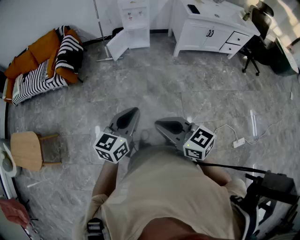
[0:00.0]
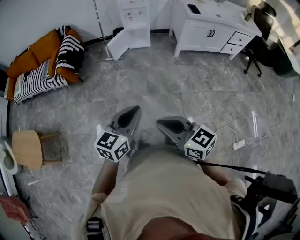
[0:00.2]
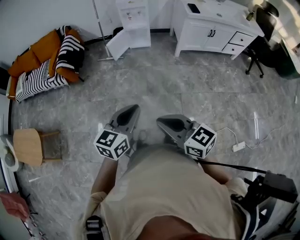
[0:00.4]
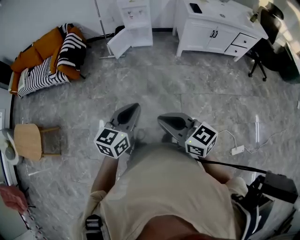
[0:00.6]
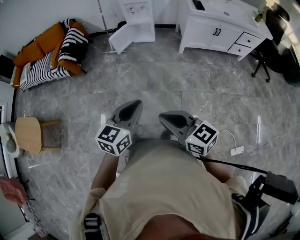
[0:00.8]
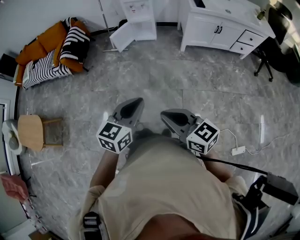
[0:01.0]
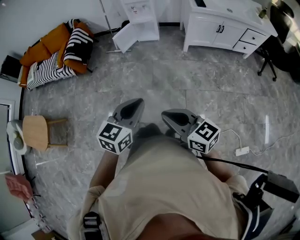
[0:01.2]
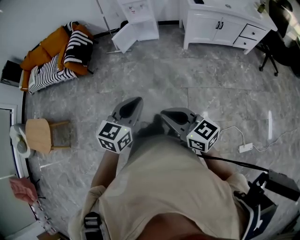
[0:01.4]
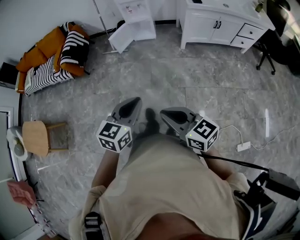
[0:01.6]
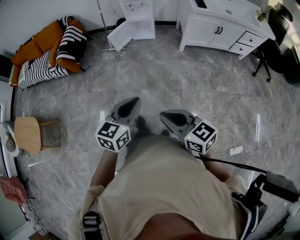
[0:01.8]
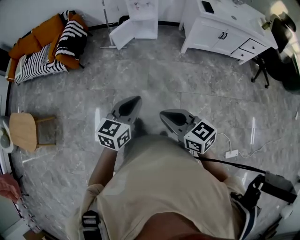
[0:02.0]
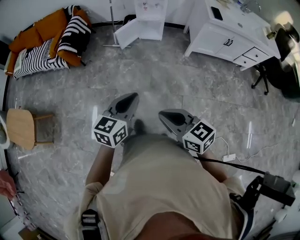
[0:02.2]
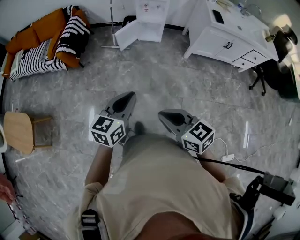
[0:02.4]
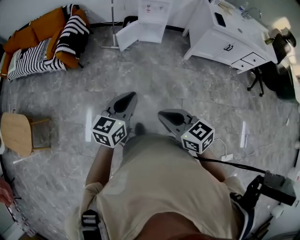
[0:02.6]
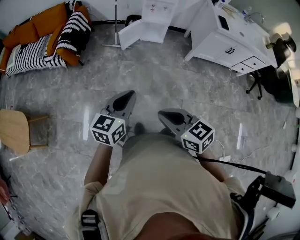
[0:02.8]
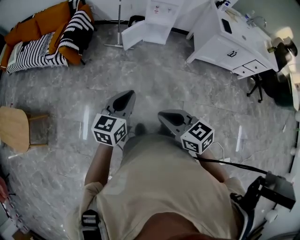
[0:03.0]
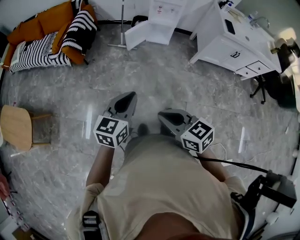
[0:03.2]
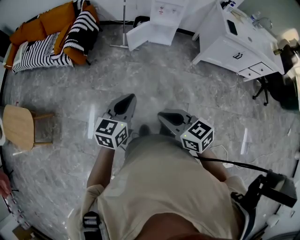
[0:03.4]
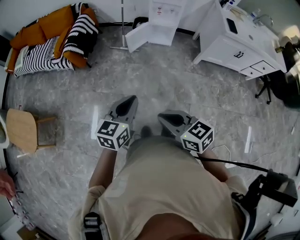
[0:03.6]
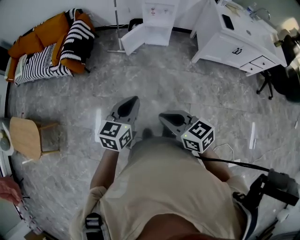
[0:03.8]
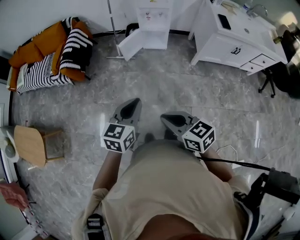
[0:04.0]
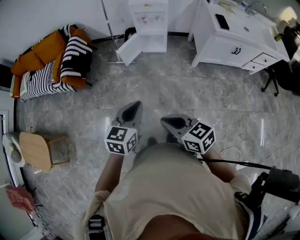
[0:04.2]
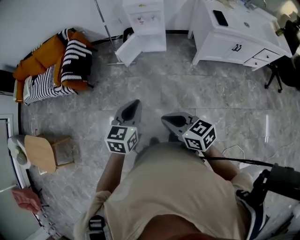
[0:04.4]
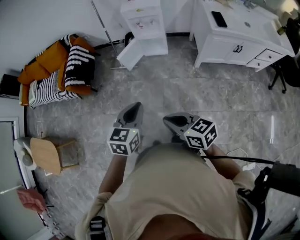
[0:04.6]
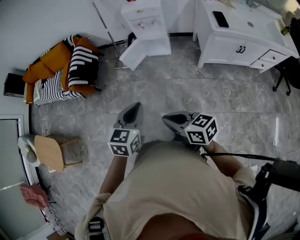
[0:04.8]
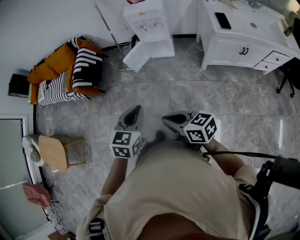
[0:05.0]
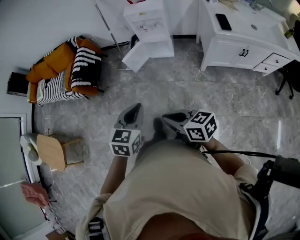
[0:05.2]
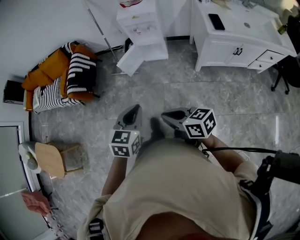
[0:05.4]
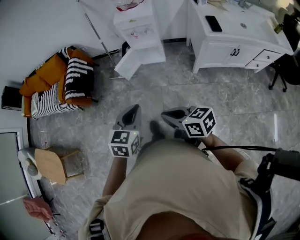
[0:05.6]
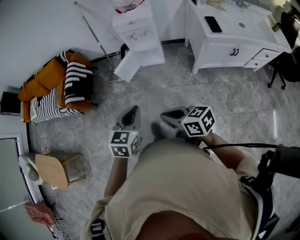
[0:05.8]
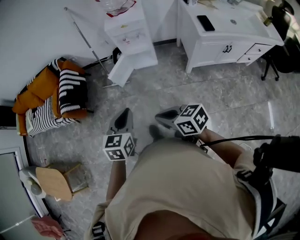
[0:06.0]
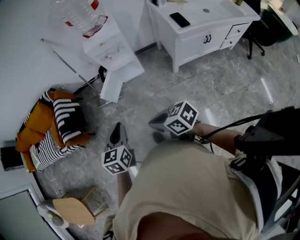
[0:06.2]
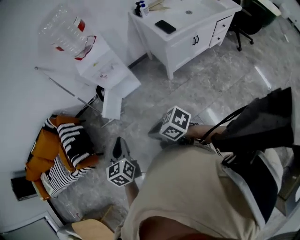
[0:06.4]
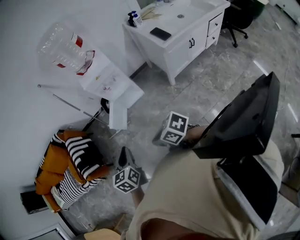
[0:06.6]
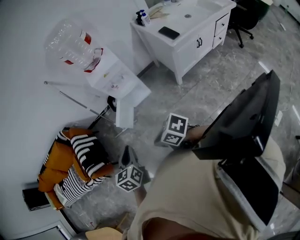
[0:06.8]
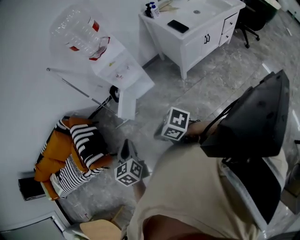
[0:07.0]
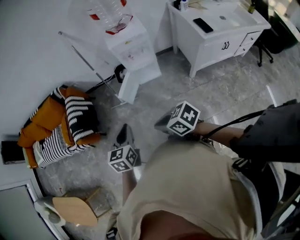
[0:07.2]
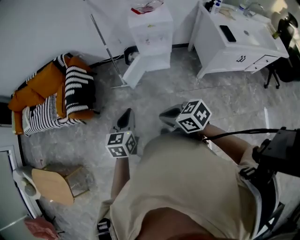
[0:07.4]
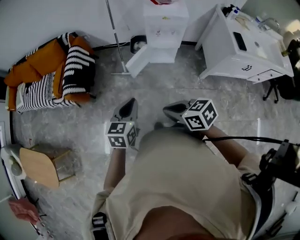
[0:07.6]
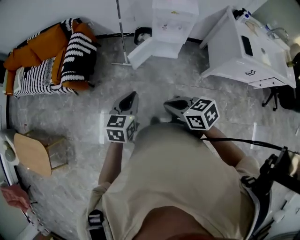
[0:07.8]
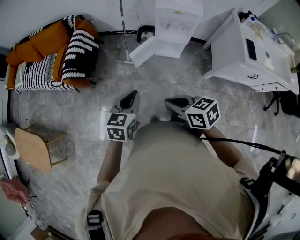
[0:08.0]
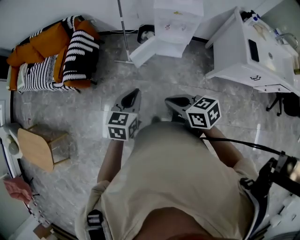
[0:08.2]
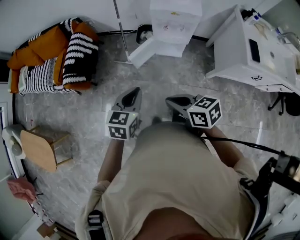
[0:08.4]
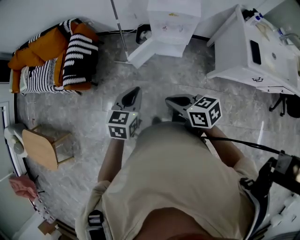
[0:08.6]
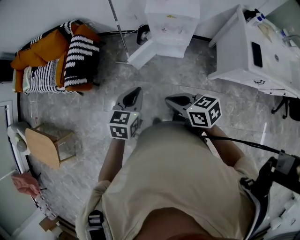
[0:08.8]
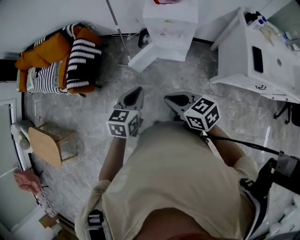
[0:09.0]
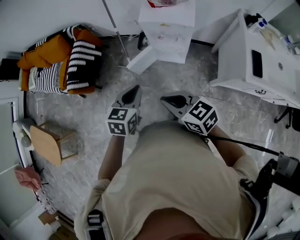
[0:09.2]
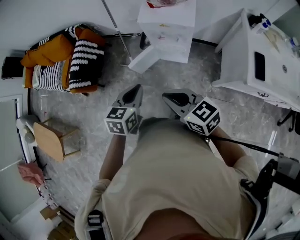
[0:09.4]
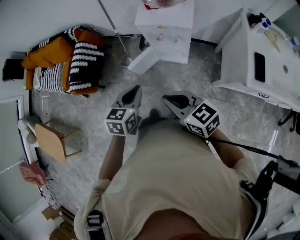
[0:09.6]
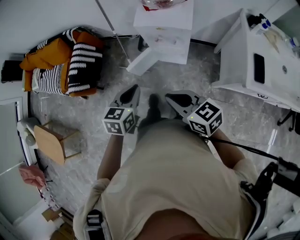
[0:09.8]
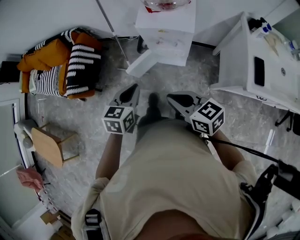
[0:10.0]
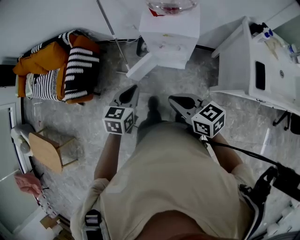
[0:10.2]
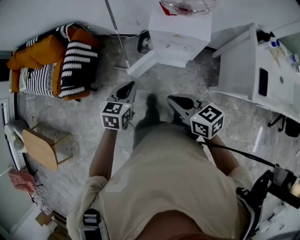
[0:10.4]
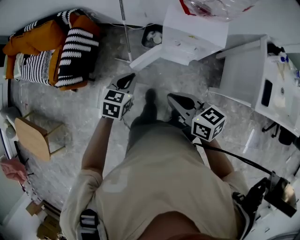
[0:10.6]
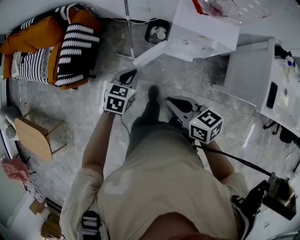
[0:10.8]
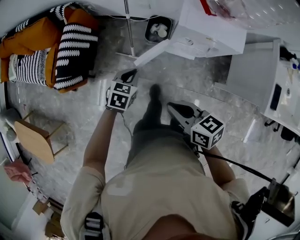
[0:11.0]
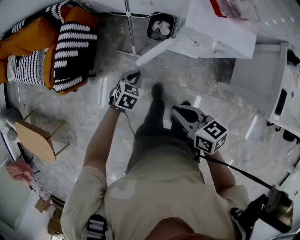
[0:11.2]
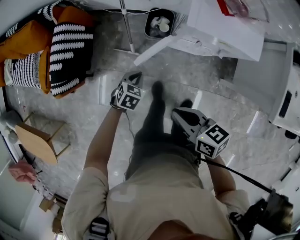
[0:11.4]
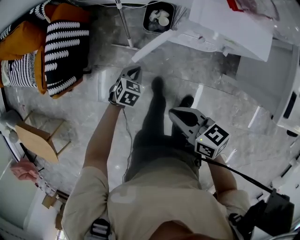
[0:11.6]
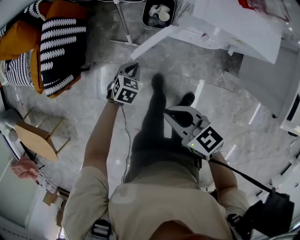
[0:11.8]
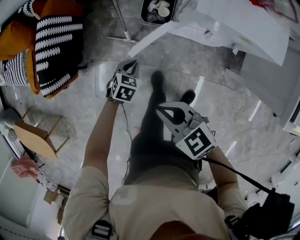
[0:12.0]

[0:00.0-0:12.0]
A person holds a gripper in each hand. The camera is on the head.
0:00.0 to 0:01.6: The grippers both shift to the right by approximately 15 cm.
0:01.6 to 0:03.0: The two grippers go approximately 25 cm to the left and forward.
0:03.0 to 0:04.4: Both grippers travel together to the right and forward, about 20 cm.
0:04.4 to 0:06.0: The grippers both shift forward by some 15 cm.
0:06.0 to 0:07.6: Both grippers move to the left and forward, roughly 15 cm.
0:07.6 to 0:09.0: The two grippers go about 20 cm to the right and forward.
0:09.0 to 0:10.4: The grippers both shift forward by roughly 15 cm.
0:10.4 to 0:12.0: The left gripper shifts approximately 35 cm downward, and swivels about 30 degrees. The right gripper is displaced downward, to the left and forward by approximately 25 cm, and changes its angle by approximately 20 degrees.

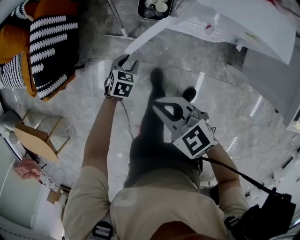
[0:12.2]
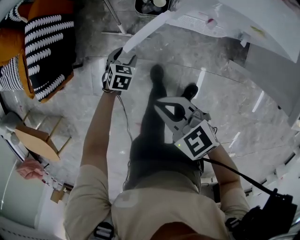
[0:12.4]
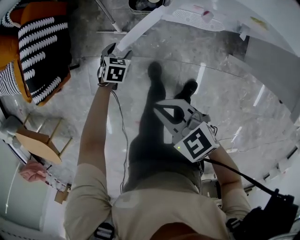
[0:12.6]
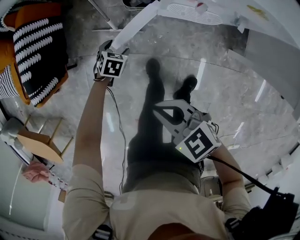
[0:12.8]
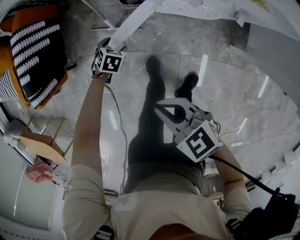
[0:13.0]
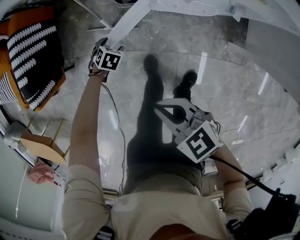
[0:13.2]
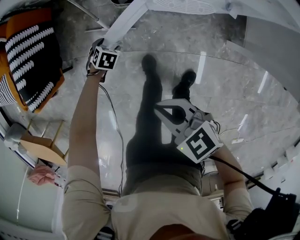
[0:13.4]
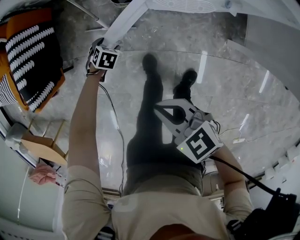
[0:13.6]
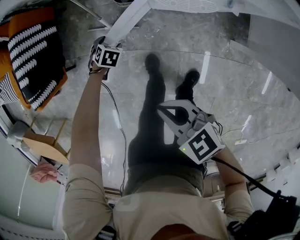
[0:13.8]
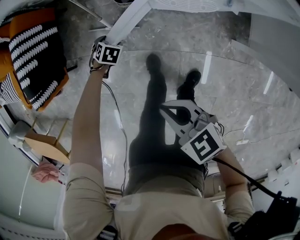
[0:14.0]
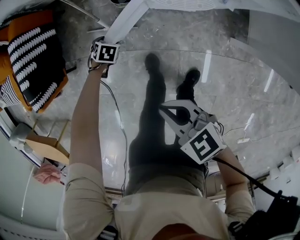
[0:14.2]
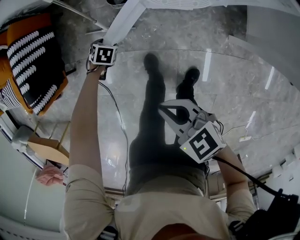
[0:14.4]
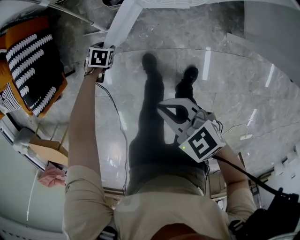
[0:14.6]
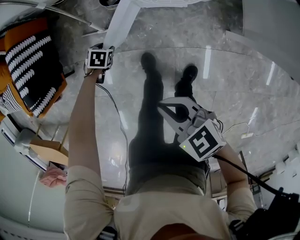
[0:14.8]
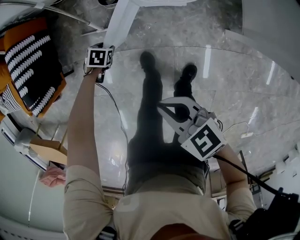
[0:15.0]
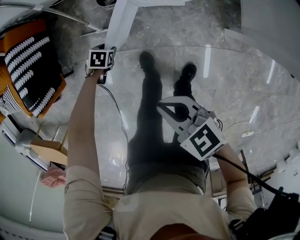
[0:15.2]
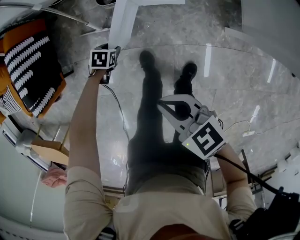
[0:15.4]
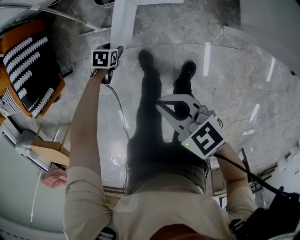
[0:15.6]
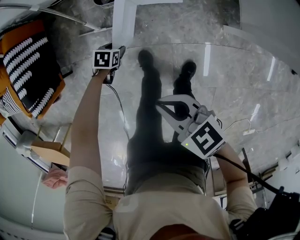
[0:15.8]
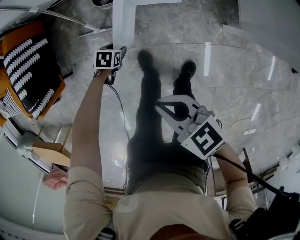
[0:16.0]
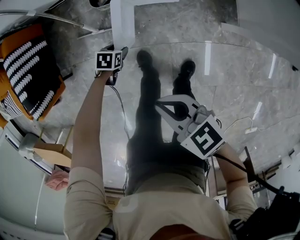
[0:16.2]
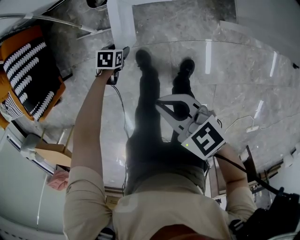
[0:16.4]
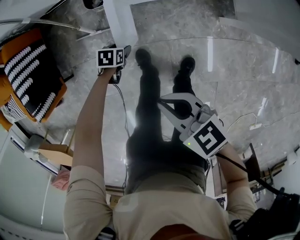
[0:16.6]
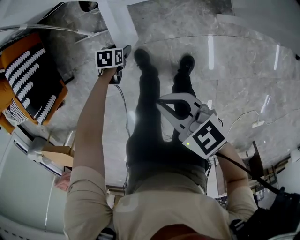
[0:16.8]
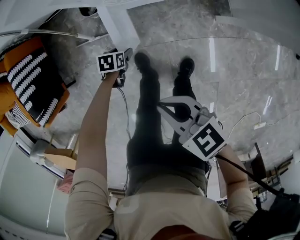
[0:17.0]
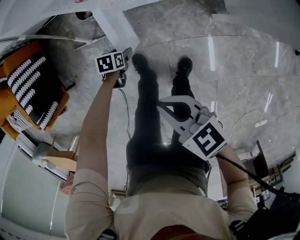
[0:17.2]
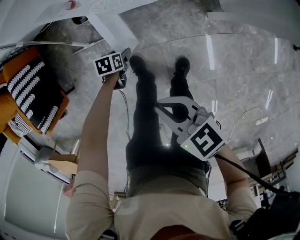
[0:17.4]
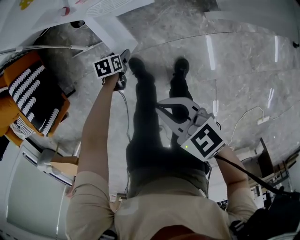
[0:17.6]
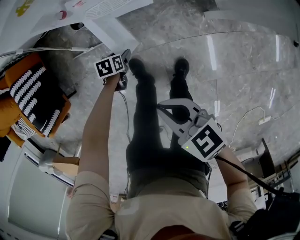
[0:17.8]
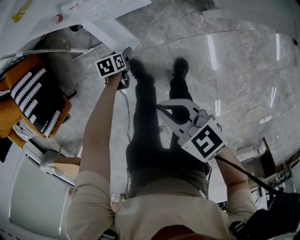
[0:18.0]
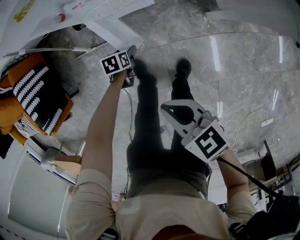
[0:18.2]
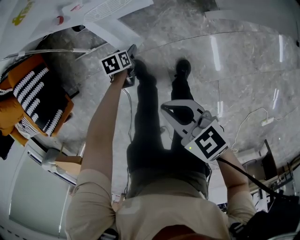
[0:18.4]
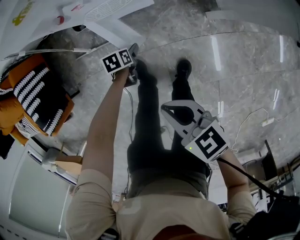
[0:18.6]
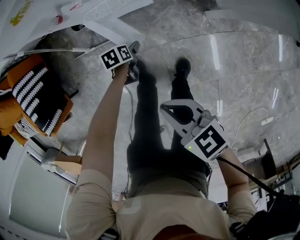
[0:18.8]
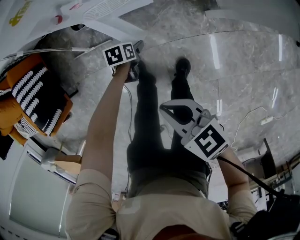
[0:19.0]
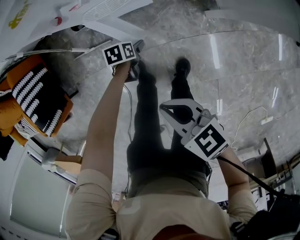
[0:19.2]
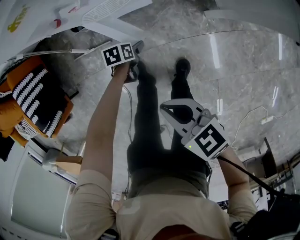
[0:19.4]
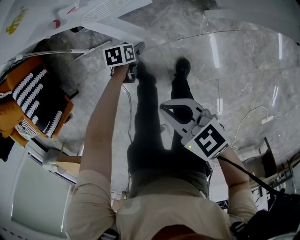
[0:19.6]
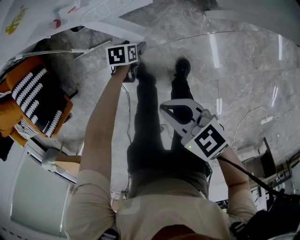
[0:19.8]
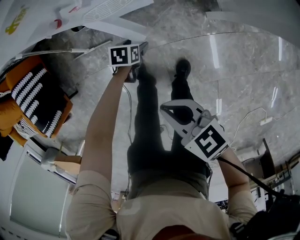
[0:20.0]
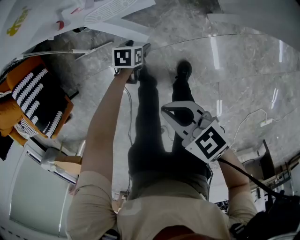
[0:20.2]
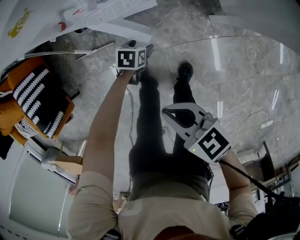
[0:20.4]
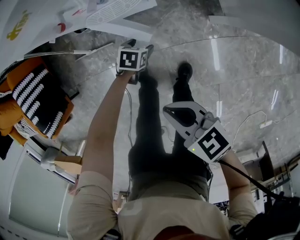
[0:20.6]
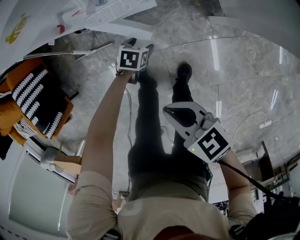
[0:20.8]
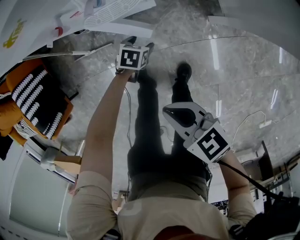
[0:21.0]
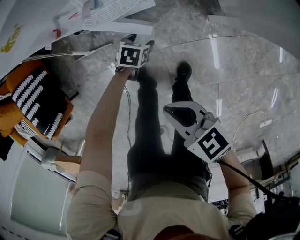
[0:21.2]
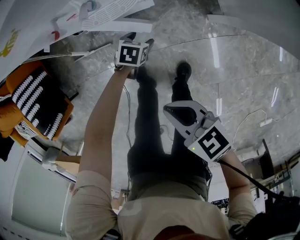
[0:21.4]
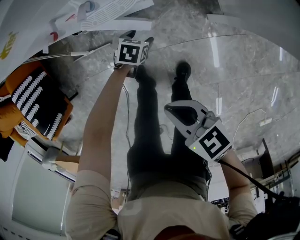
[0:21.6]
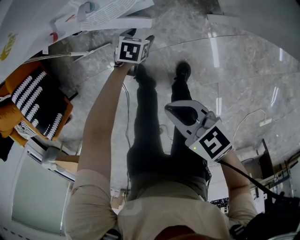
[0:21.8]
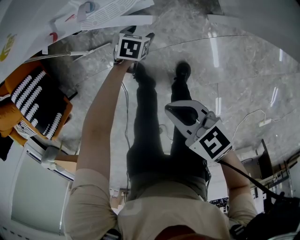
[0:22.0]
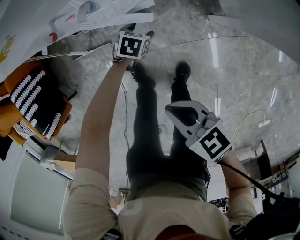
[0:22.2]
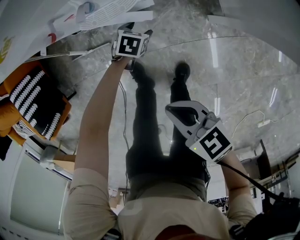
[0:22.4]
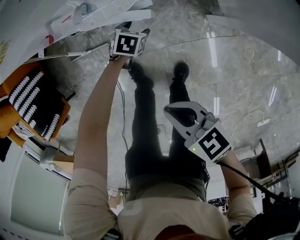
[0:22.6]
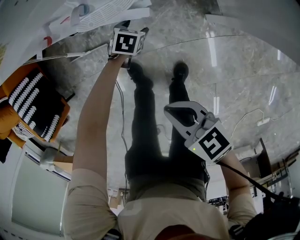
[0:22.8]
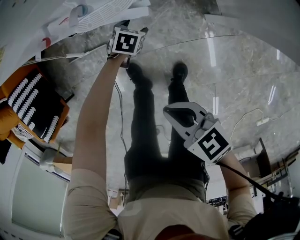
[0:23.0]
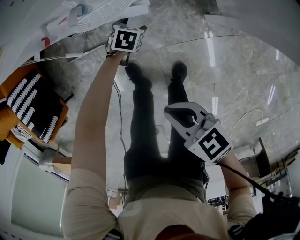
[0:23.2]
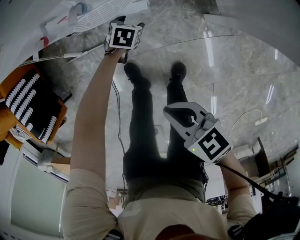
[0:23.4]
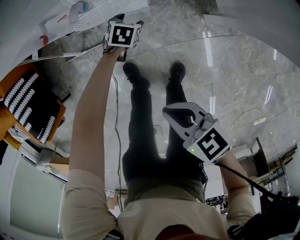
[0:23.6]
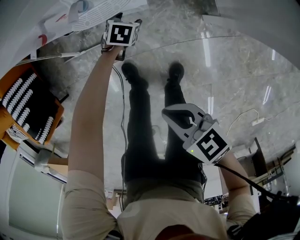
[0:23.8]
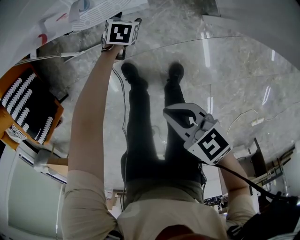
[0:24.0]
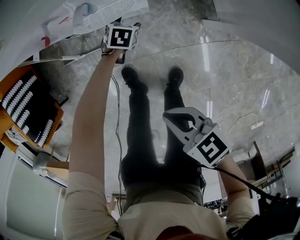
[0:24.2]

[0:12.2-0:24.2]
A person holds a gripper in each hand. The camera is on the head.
0:12.2 to 0:13.8: The left gripper goes approximately 15 cm downward, and opens, while the right gripper changes place by about 10 cm.
0:13.8 to 0:15.2: The left gripper ends up approximately 5 cm from where it was, and closes up.
0:15.2 to 0:16.6: The left gripper ends up some 10 cm from where it was.
0:16.6 to 0:18.2: The left gripper shifts by approximately 10 cm. The right gripper ends up roughly 10 cm from where it was.
0:18.2 to 0:19.8: The left gripper shifts by roughly 5 cm.
0:19.8 to 0:21.2: The left gripper moves about 5 cm.
0:21.2 to 0:22.6: The left gripper ends up roughly 5 cm from where it was.
0:22.6 to 0:24.2: The left gripper moves roughly 5 cm.
